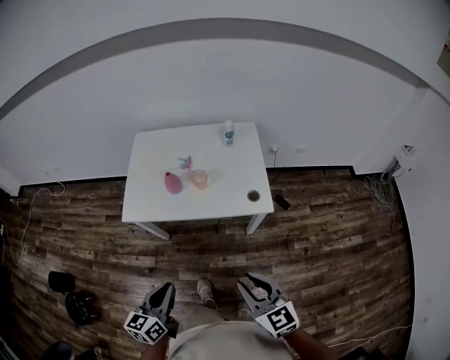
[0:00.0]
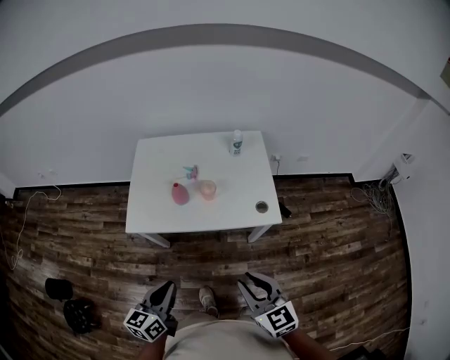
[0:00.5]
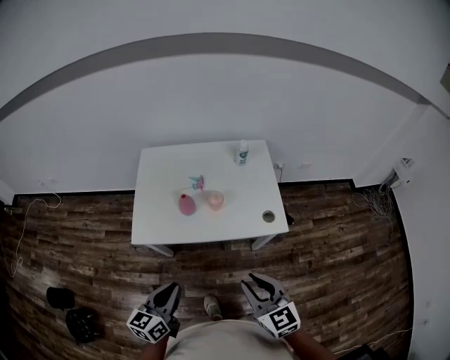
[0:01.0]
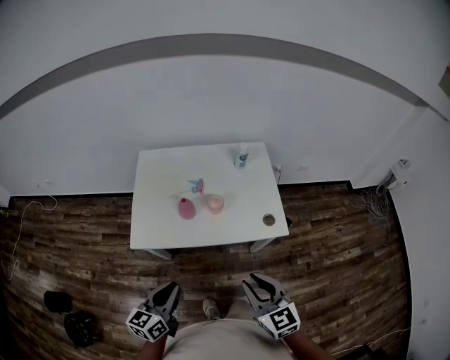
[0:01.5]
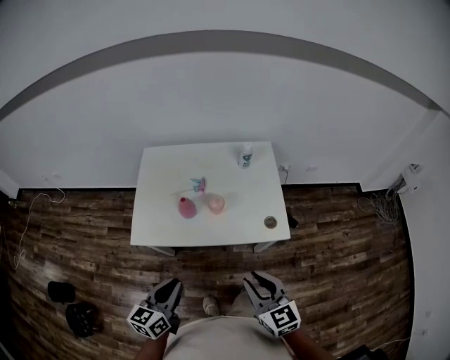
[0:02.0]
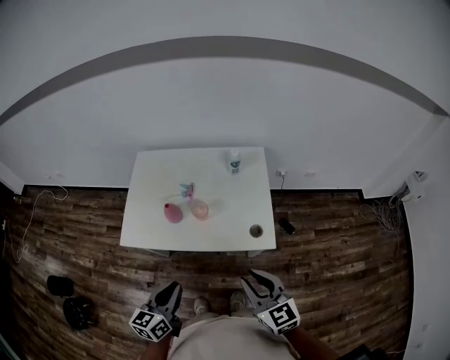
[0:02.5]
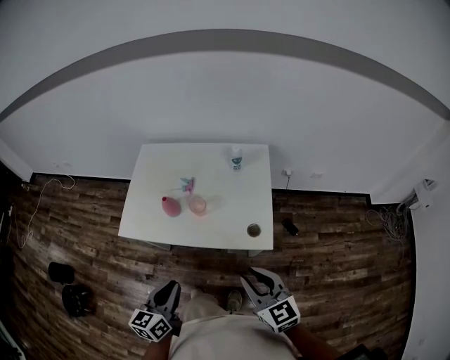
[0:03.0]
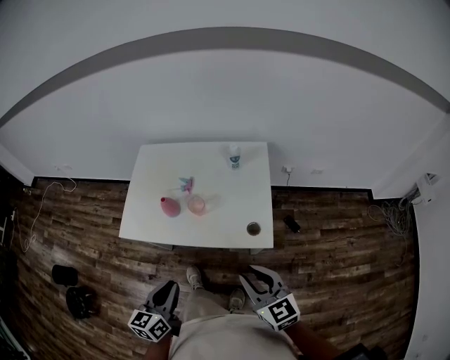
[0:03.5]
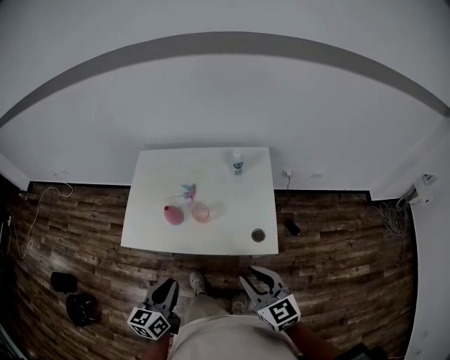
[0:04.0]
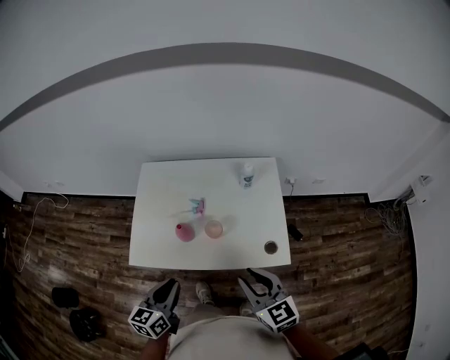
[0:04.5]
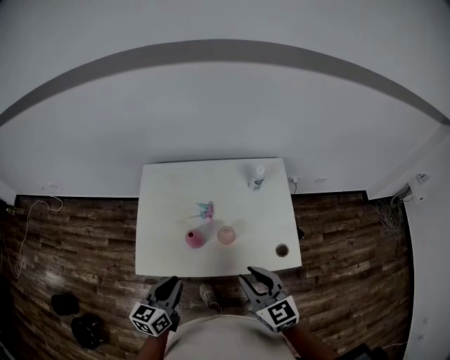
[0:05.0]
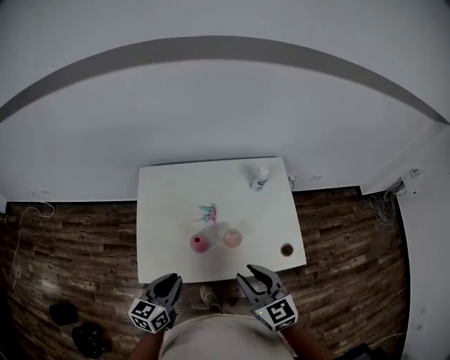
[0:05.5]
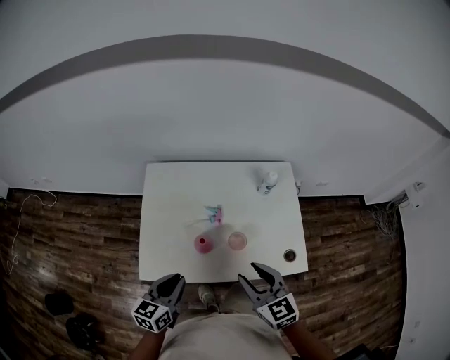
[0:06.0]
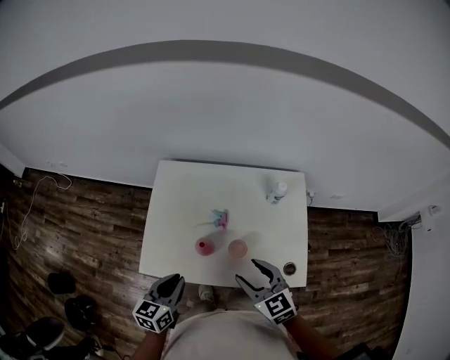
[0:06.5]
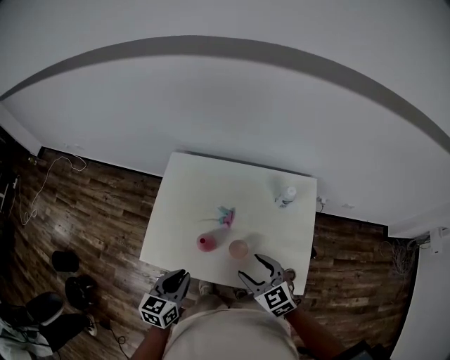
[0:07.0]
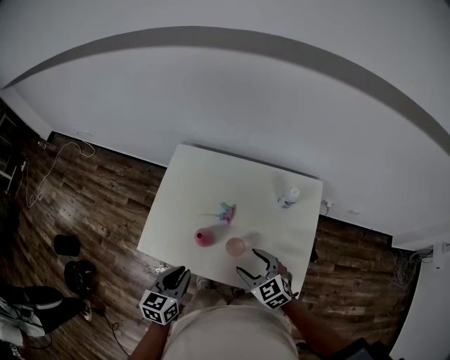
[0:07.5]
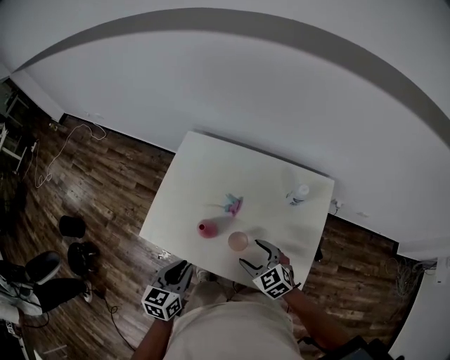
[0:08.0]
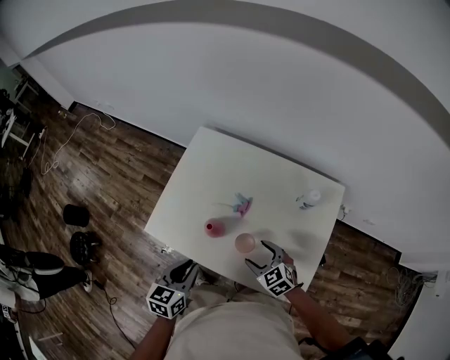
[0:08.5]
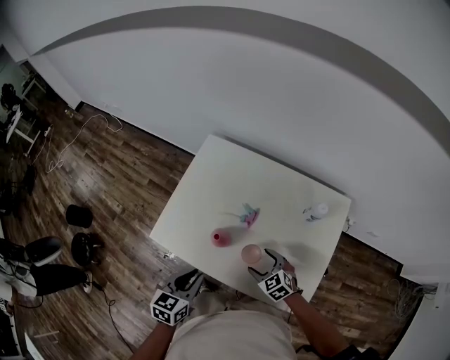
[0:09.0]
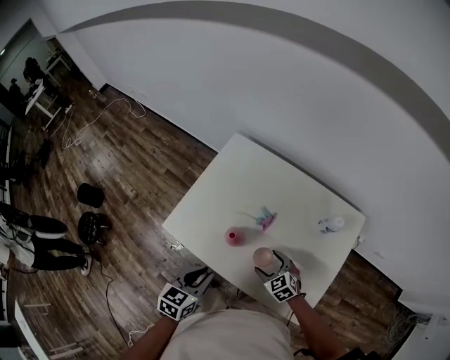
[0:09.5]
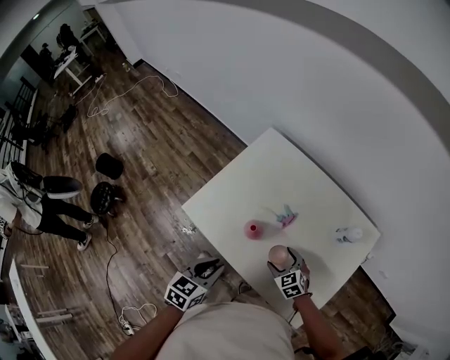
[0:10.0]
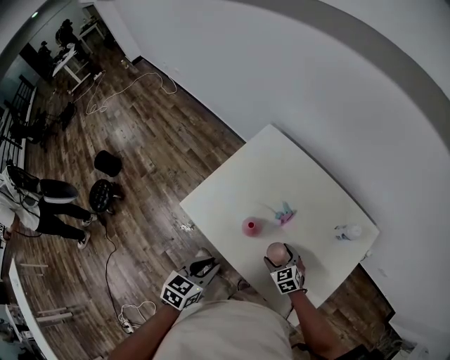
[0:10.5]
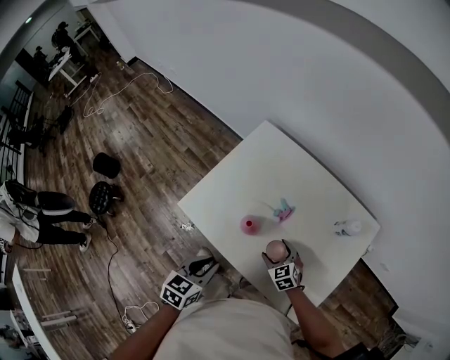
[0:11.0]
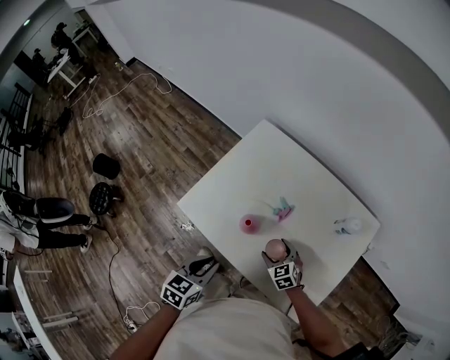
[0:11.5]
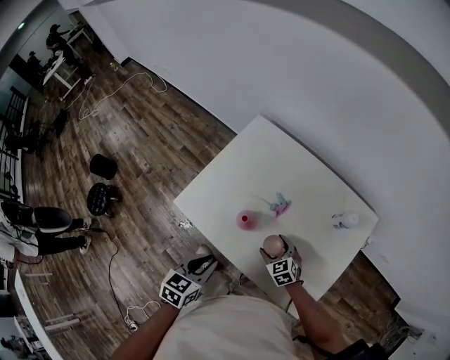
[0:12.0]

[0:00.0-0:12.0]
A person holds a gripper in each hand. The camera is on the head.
0:00.0 to 0:02.0: Both grippers travel together forward, roughly 15 cm.
0:02.0 to 0:04.0: The right gripper goes some 15 cm to the right and forward. Meanwhile the left gripper moves to the right, some 10 cm.
0:04.0 to 0:06.0: The right gripper shifts some 25 cm to the left and forward. Meanwhile the left gripper goes approximately 25 cm forward and to the left.
0:06.0 to 0:08.0: The left gripper moves about 10 cm, and rotates roughly 30 degrees; the right gripper travels downward by about 15 cm, swivels some 40 degrees, and opens.
0:08.0 to 0:10.0: The right gripper shifts about 10 cm downward.
0:10.0 to 0:12.0: The grippers stay close to where they were, moving slightly.

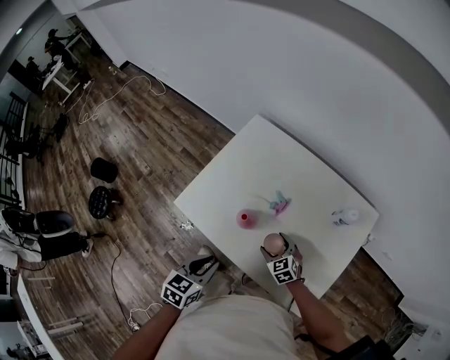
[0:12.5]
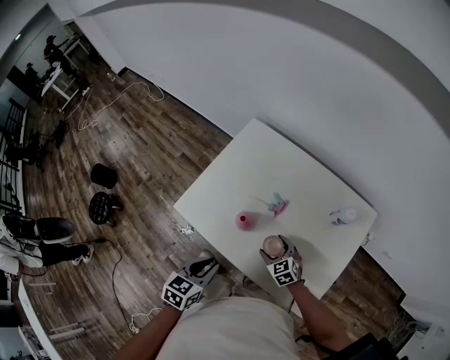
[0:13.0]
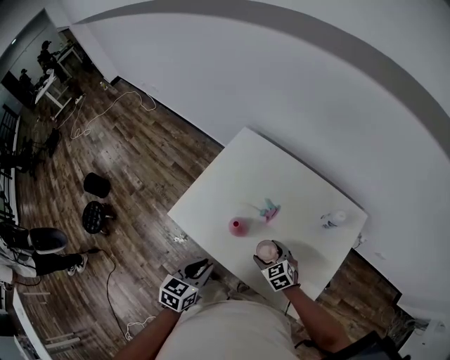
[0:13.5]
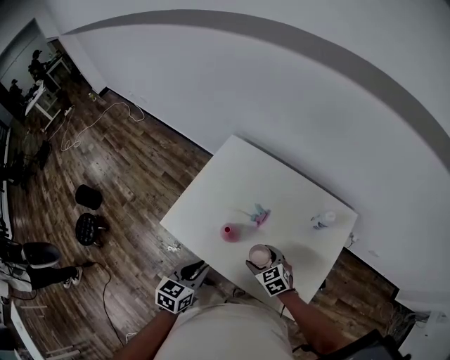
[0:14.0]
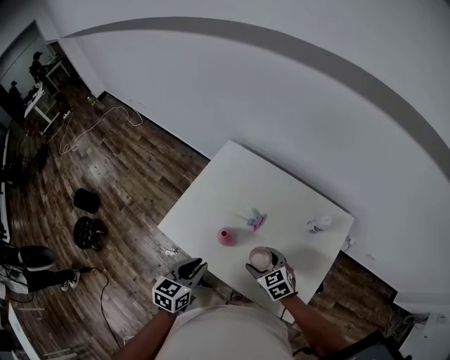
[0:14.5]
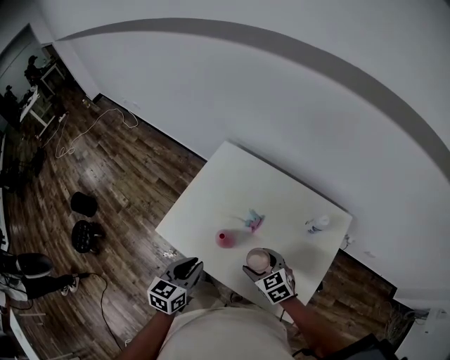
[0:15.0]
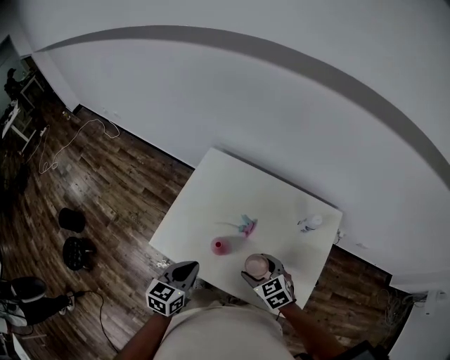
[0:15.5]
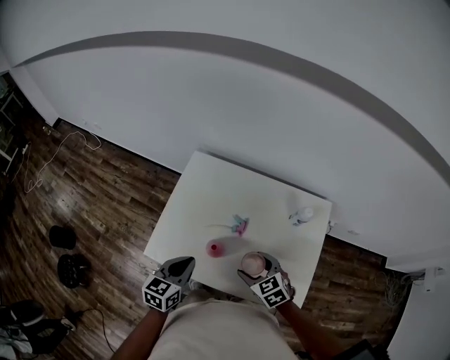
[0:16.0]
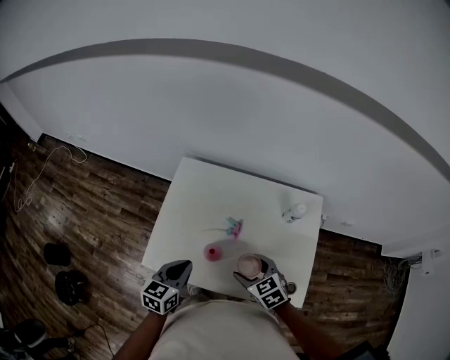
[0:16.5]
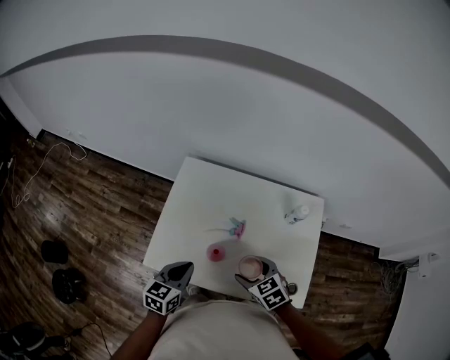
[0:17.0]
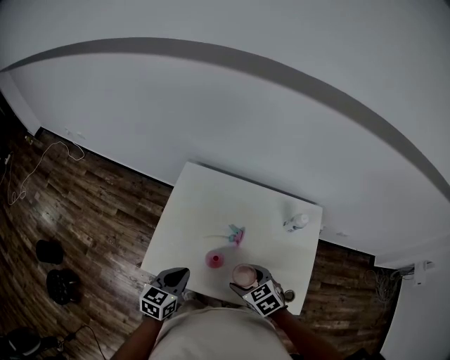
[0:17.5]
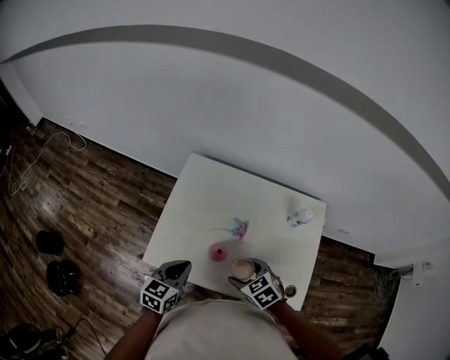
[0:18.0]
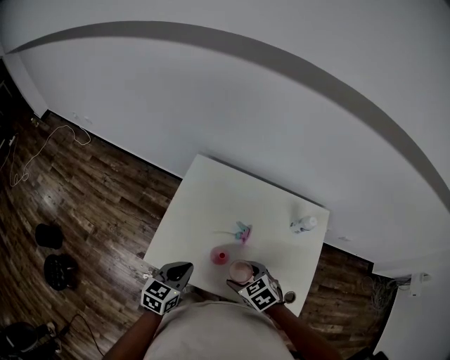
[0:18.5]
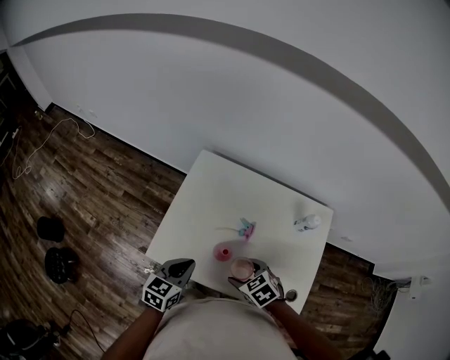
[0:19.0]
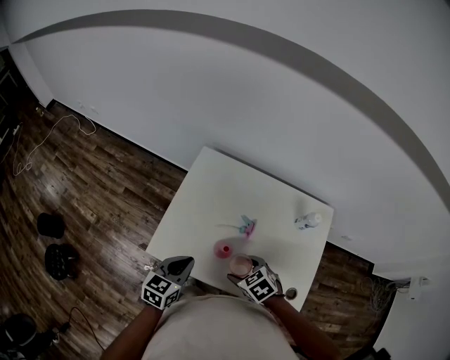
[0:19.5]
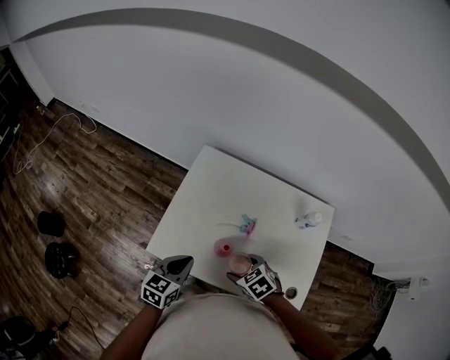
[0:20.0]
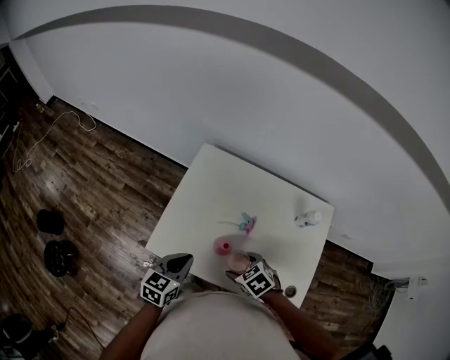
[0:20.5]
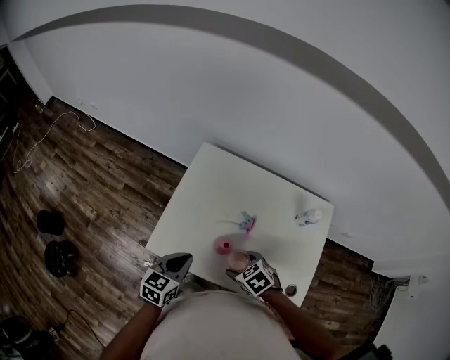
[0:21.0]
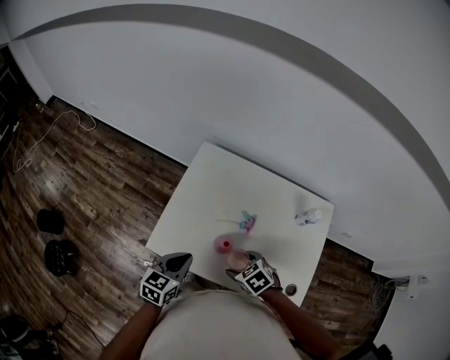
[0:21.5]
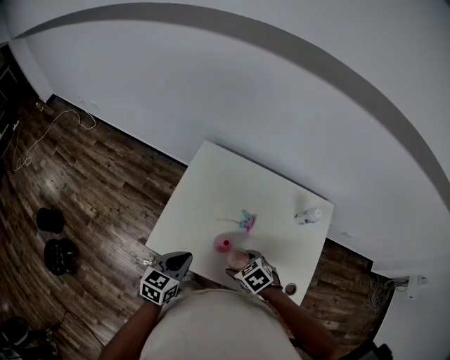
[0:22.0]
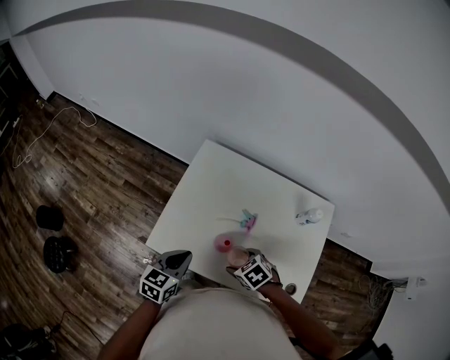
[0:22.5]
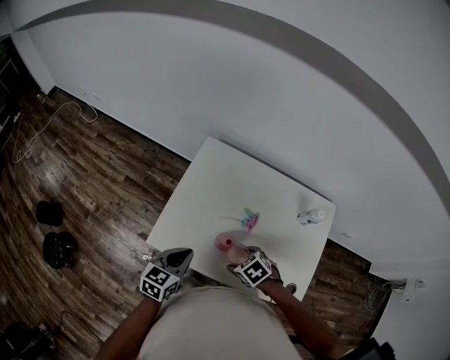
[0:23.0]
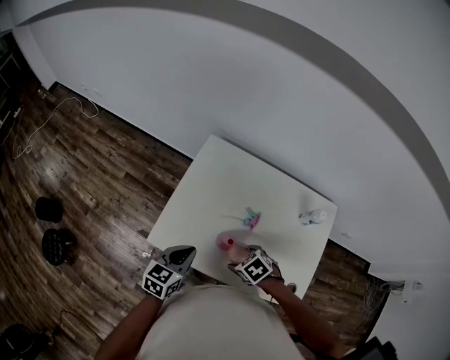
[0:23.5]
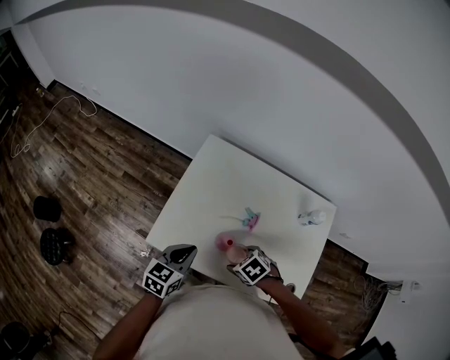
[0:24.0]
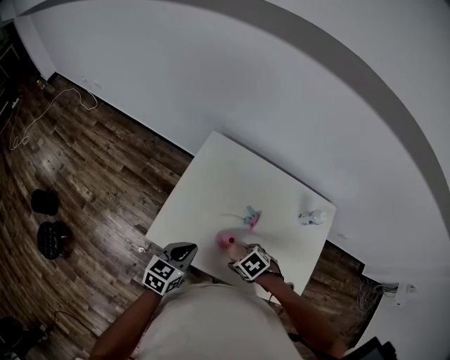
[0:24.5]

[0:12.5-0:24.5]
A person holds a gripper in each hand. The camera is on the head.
0:12.5 to 0:14.5: The left gripper changes place by about 5 cm, while the right gripper goes some 15 cm upward.
0:14.5 to 0:16.5: The left gripper moves forward, about 10 cm; the right gripper heads upward, covering approximately 5 cm.
0:16.5 to 0:18.5: The right gripper is displaced to the left by about 5 cm.
0:18.5 to 0:22.5: The grippers stay close to where they were, moving slightly.
0:22.5 to 0:24.5: The grippers move only a little.

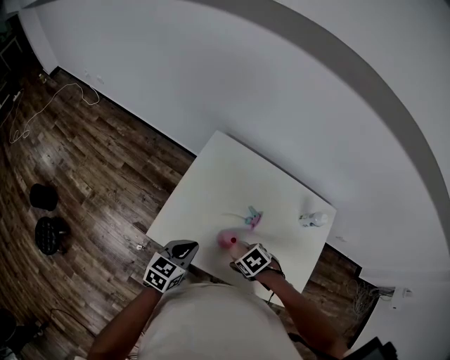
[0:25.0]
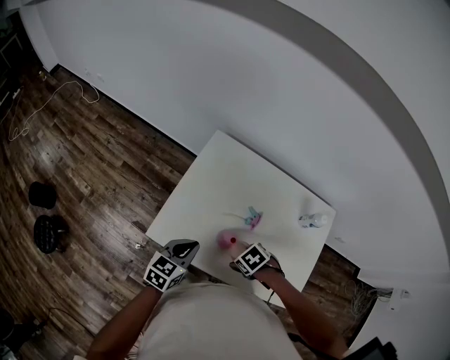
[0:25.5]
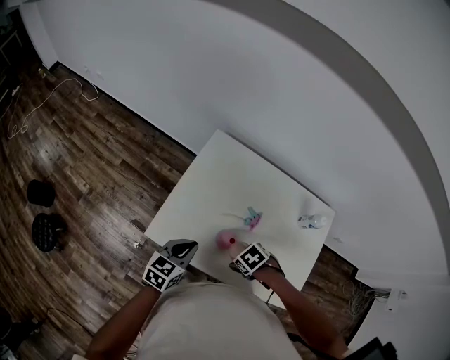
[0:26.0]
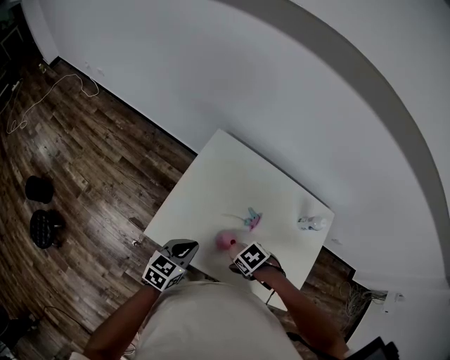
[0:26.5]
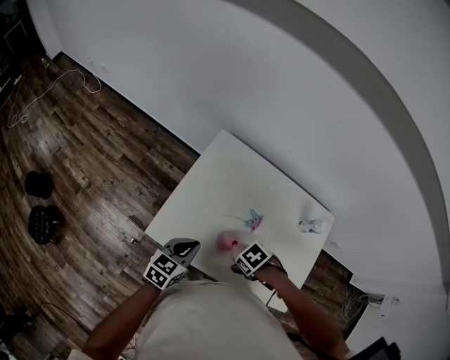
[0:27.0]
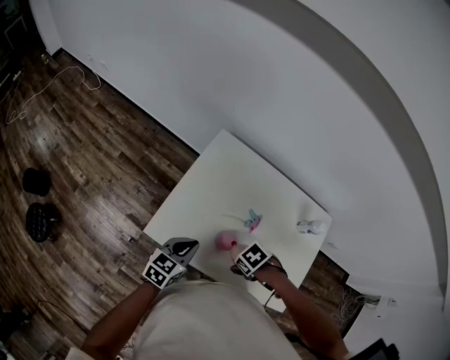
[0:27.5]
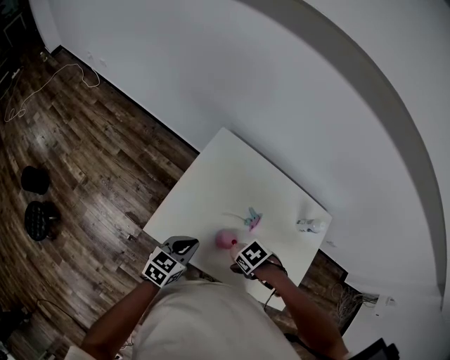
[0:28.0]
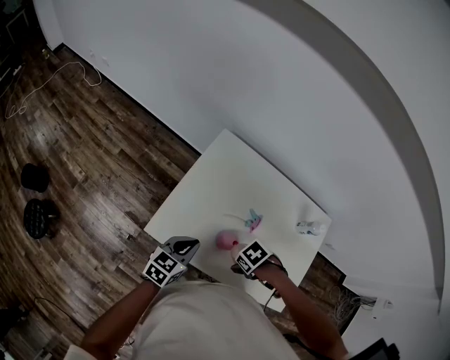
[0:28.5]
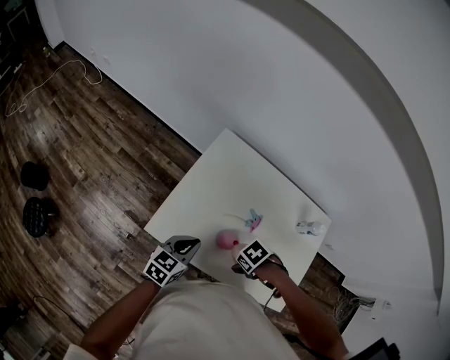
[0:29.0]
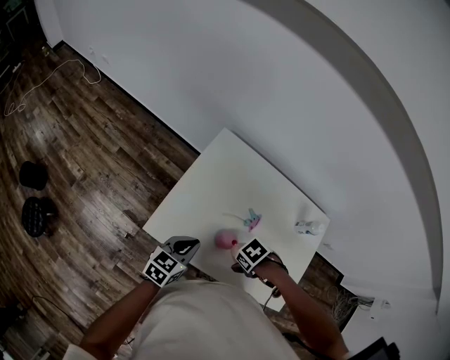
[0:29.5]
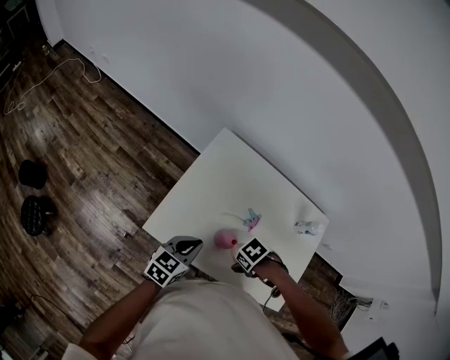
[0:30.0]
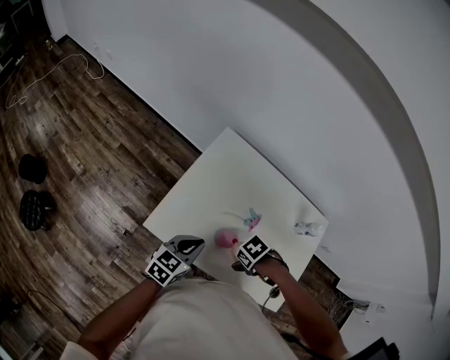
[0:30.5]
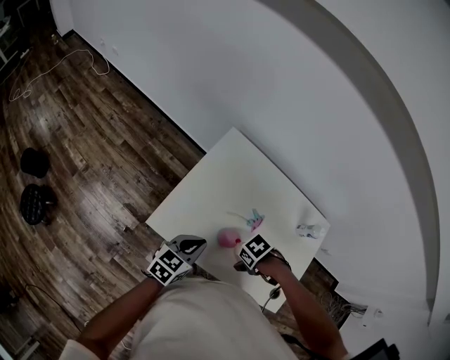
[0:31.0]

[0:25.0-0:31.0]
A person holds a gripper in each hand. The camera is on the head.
0:25.0 to 0:29.0: The grippers move only a little.
0:29.0 to 0:31.0: There are only small adjustments of the grippers.
